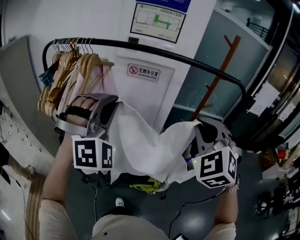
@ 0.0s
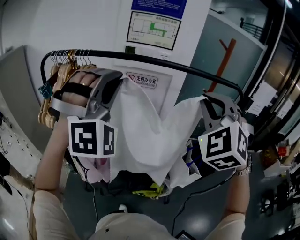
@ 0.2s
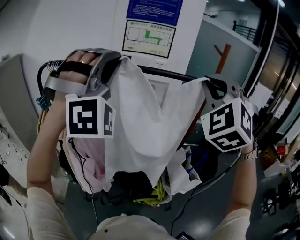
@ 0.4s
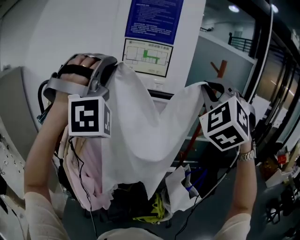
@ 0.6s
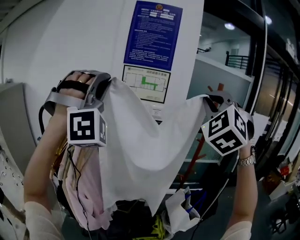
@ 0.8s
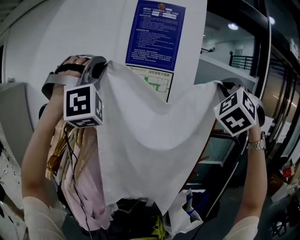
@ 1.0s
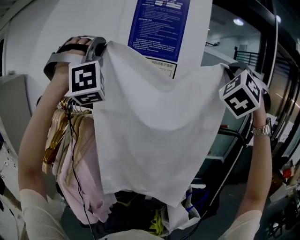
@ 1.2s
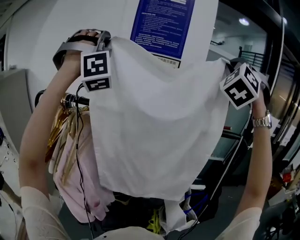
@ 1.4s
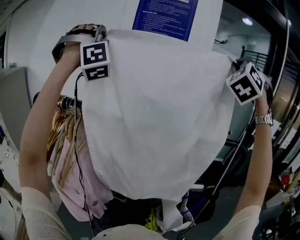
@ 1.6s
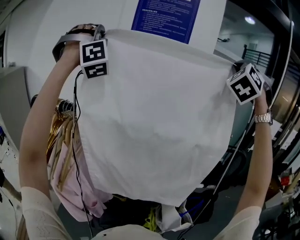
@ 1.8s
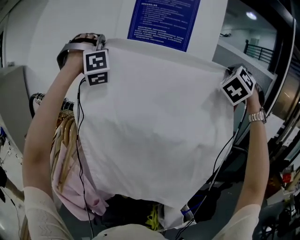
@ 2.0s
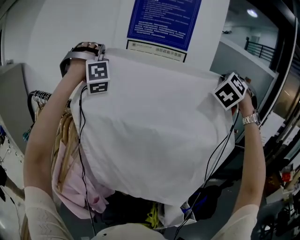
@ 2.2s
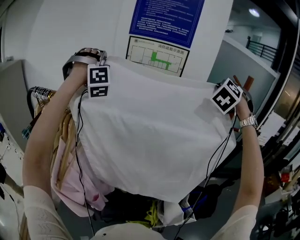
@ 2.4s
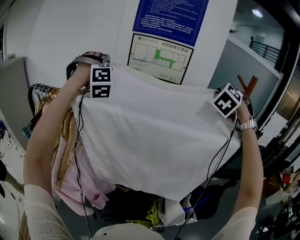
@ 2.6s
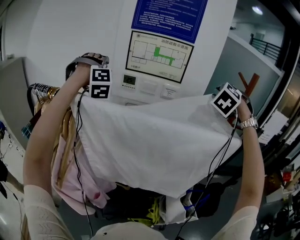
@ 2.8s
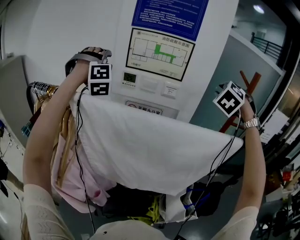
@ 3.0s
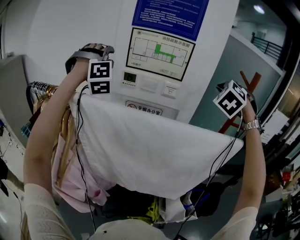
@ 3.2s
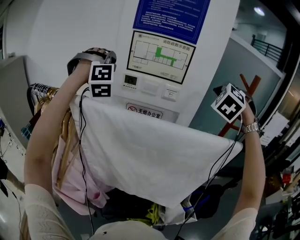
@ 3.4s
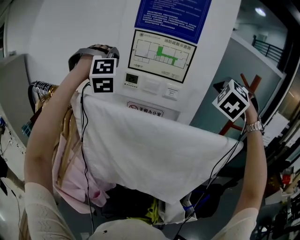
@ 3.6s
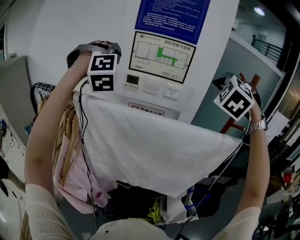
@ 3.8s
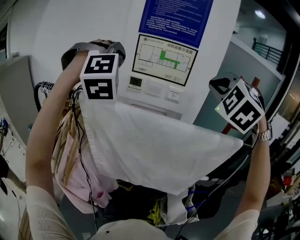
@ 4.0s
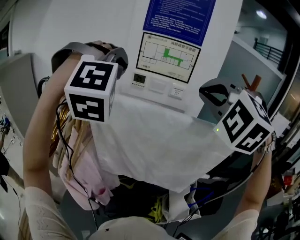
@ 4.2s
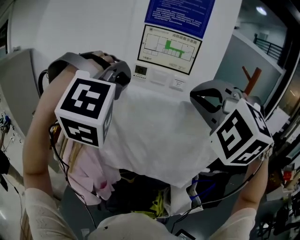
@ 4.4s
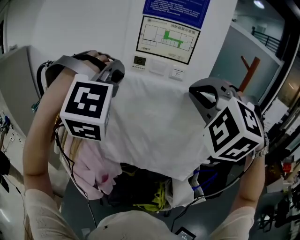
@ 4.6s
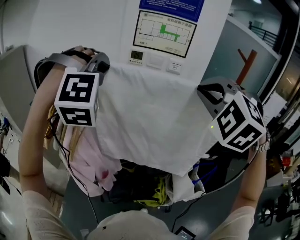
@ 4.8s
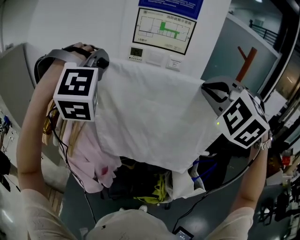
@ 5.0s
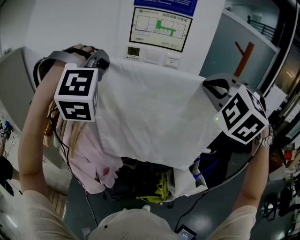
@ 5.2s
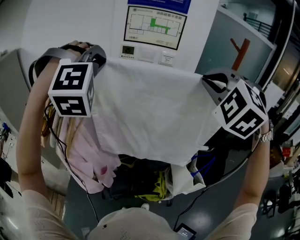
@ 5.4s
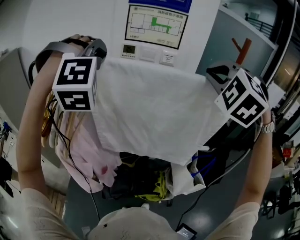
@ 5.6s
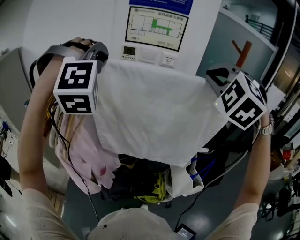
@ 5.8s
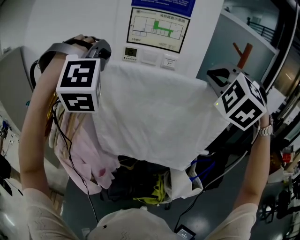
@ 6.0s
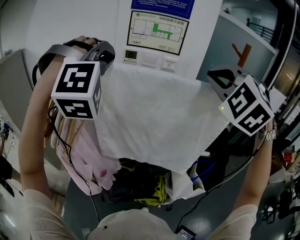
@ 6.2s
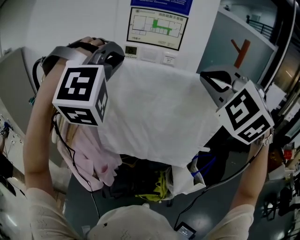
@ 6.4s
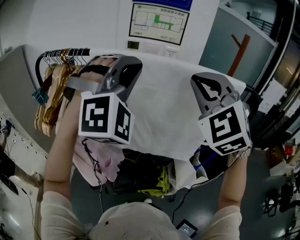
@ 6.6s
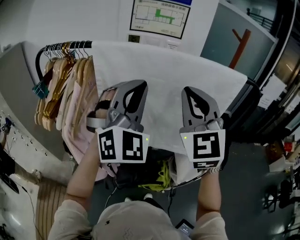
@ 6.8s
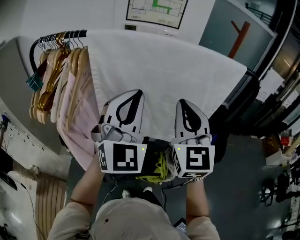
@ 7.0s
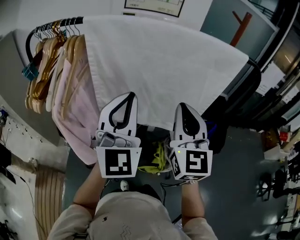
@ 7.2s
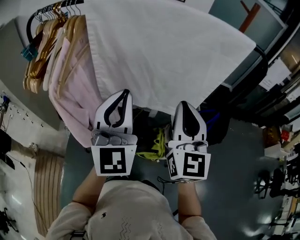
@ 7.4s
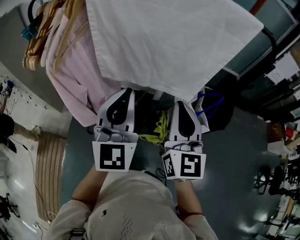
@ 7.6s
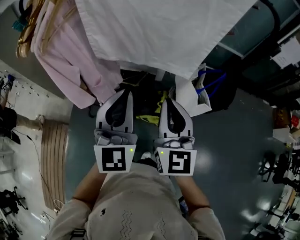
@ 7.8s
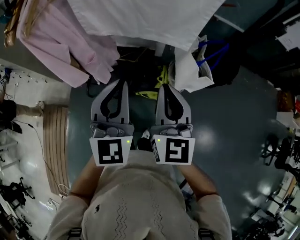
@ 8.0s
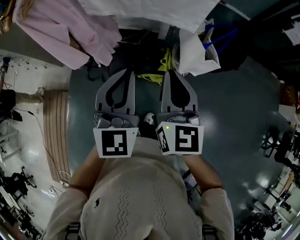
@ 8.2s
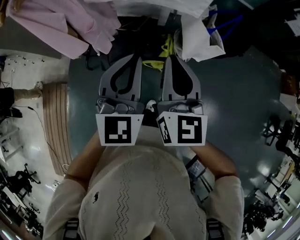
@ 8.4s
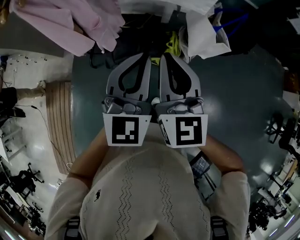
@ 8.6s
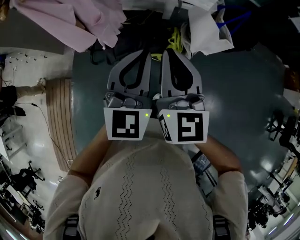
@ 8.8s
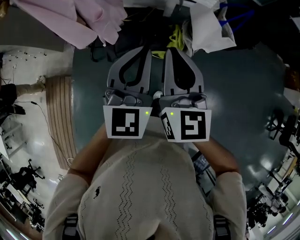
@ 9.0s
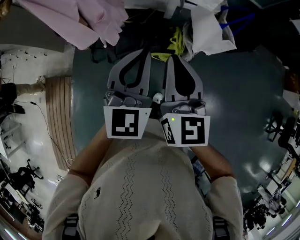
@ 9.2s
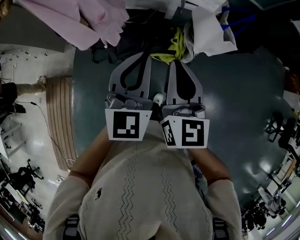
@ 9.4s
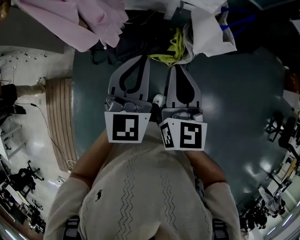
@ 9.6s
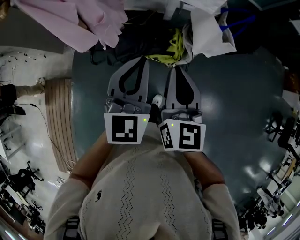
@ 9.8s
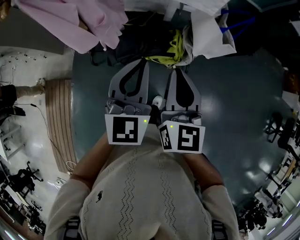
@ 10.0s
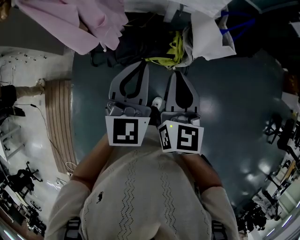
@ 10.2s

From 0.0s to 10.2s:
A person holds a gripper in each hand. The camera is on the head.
From 0.0s to 1.4s: The two grippers go some 40 cm upward and forward. The left gripper rotates approximately 40 degrees; the right gripper rotates about 30 degrees.
From 1.4s to 3.0s: Both grippers move downward and forward, roughly 25 cm. The left gripper angles its fingers downward, by approximately 30 degrees, and opens up. The right gripper angles its fingers downward, by roughly 30 degrees, and opens up.
From 3.0s to 4.4s: The right gripper is displaced backward and to the left by roughly 35 cm, rotates about 40 degrees, and closes up, while the left gripper travels backward by roughly 25 cm, swivels some 20 degrees, and closes up.
From 4.4s to 5.8s: The right gripper moves to the right, approximately 10 cm.
From 5.8s to 7.2s: The right gripper goes roughly 25 cm downward and backward, and rotates around the line of its fingers by about 60 degrees, clockwise from behind. Meanwhile the left gripper shifts about 25 cm backward, downward and to the right, and twists about 70 degrees counterclockwise, seen from behind.
From 7.2s to 8.8s: Both grippers travel together downward and backward, approximately 30 cm. The right gripper rotates approximately 20 degrees; the left gripper turns by approximately 30 degrees.
From 8.8s to 10.2s: The right gripper heads downward, covering some 5 cm.

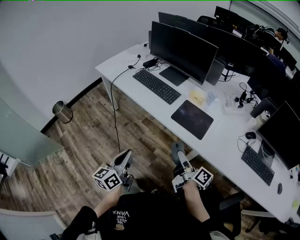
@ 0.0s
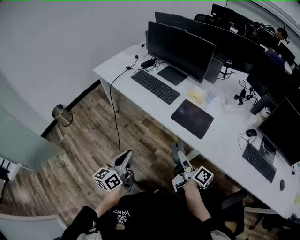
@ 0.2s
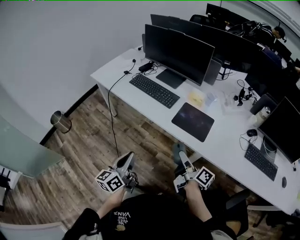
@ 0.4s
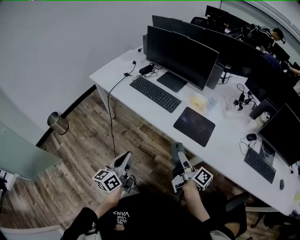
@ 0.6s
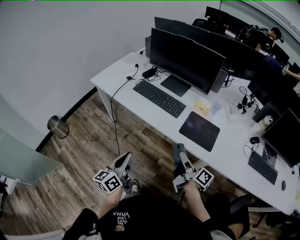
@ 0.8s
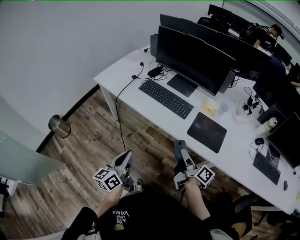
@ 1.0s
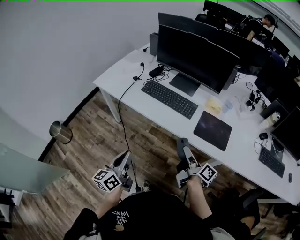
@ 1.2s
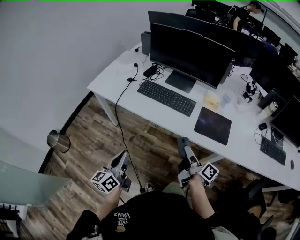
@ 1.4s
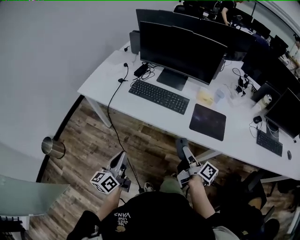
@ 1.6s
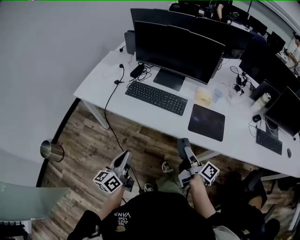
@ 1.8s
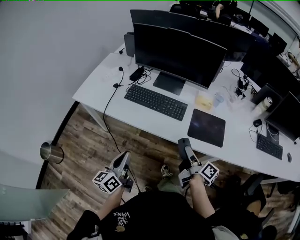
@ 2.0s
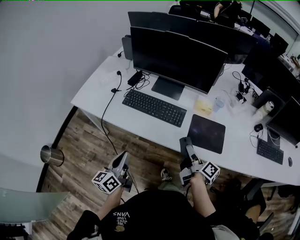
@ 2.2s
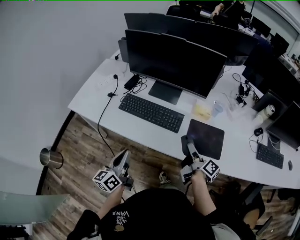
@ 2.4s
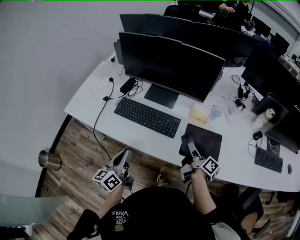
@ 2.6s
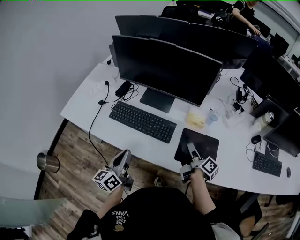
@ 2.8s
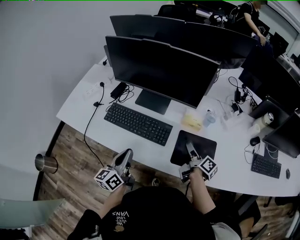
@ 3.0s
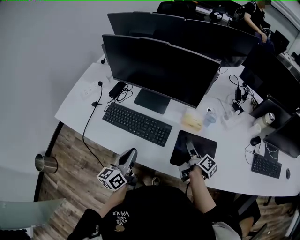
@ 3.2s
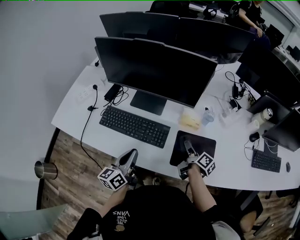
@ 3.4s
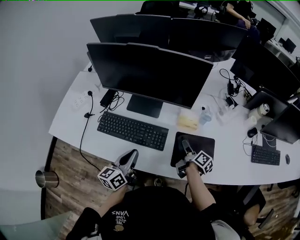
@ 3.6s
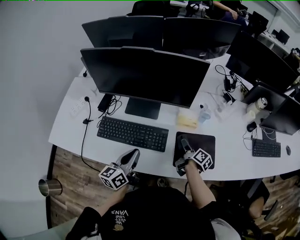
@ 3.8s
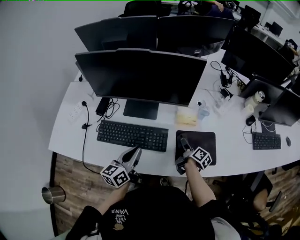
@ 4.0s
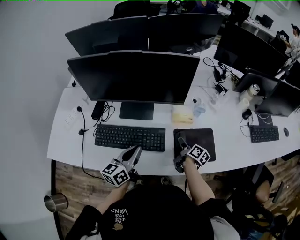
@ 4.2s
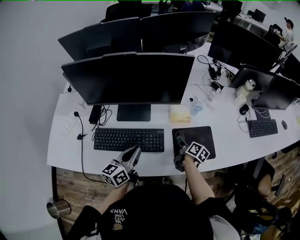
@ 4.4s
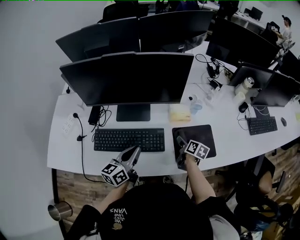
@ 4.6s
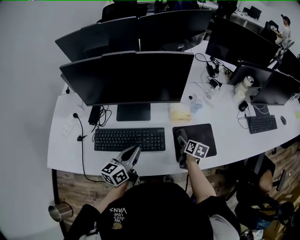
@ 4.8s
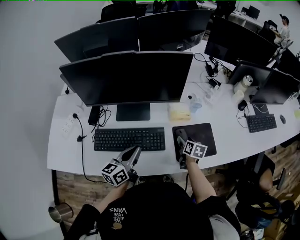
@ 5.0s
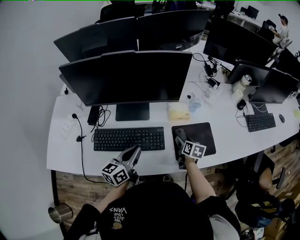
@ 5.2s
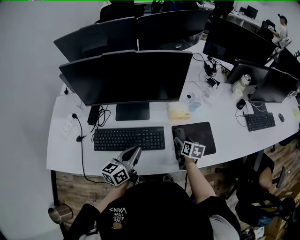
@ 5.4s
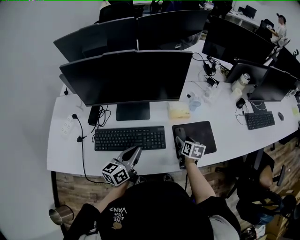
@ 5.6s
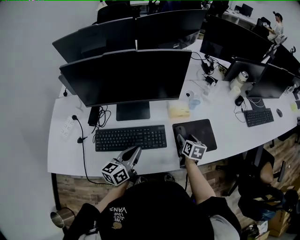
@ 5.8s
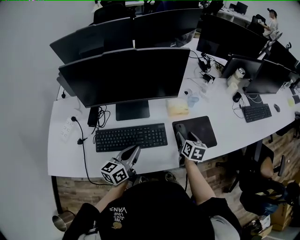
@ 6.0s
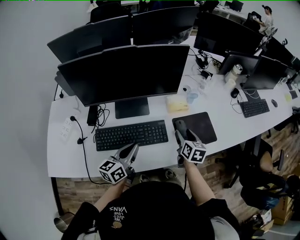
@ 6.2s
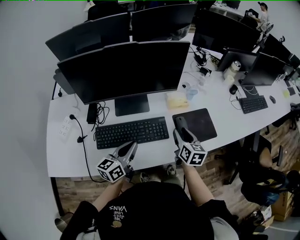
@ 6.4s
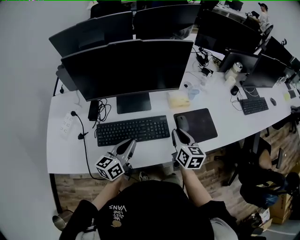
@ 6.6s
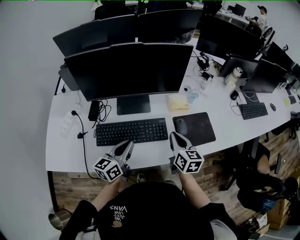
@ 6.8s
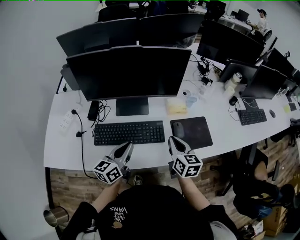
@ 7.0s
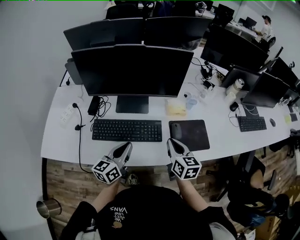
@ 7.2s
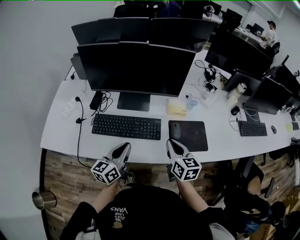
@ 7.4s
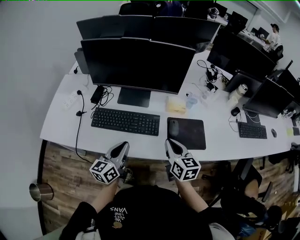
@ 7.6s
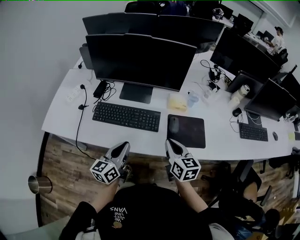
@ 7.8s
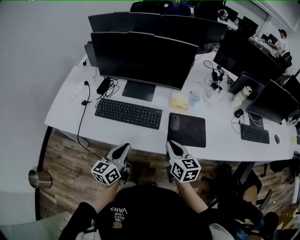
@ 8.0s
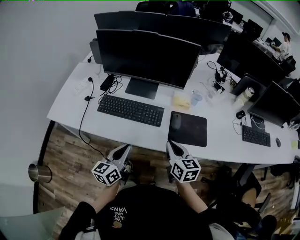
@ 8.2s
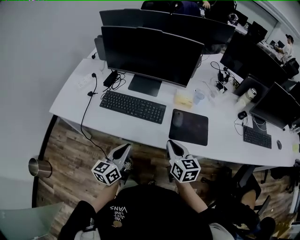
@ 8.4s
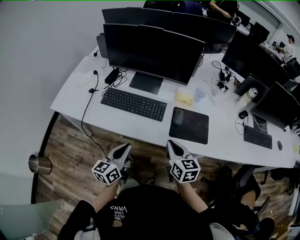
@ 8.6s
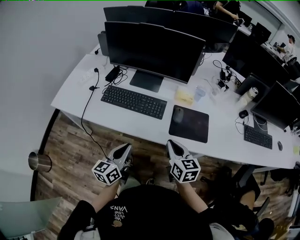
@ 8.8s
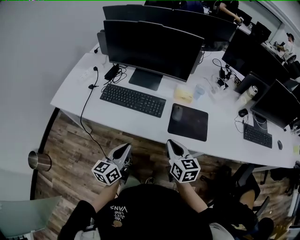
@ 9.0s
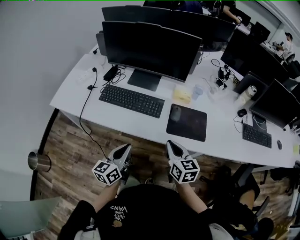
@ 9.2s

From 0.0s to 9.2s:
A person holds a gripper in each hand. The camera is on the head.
From 0.0s to 1.6s: The grippers both shift to the left and forward by approximately 25 cm. The right gripper swivels about 20 degrees.
From 1.6s to 3.0s: The grippers both shift forward and to the right by some 30 cm.
From 3.0s to 4.6s: The left gripper changes place by roughly 10 cm, and rotates about 30 degrees; the right gripper moves downward, approximately 10 cm, and rotates some 30 degrees.
From 4.6s to 6.2s: The right gripper shifts roughly 10 cm upward and backward, and turns by about 30 degrees.
From 6.2s to 7.6s: The right gripper moves backward and upward, some 15 cm, changes its angle by roughly 30 degrees, and closes. Meanwhile the left gripper shifts about 10 cm backward.
From 7.6s to 9.2s: Both grippers travel together backward, approximately 10 cm.

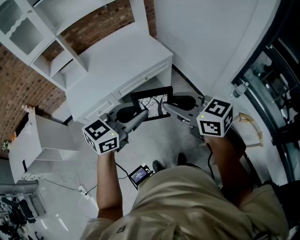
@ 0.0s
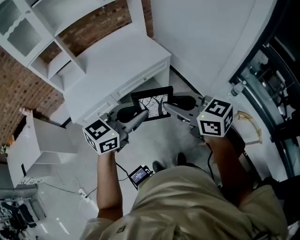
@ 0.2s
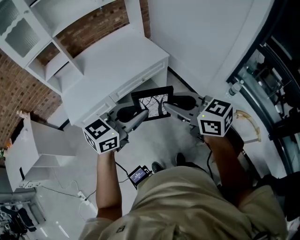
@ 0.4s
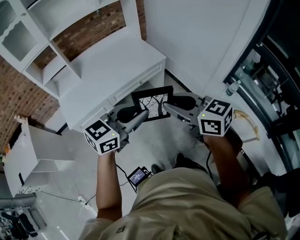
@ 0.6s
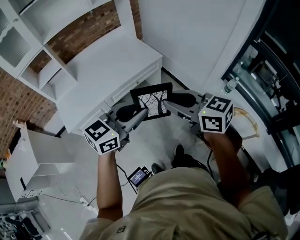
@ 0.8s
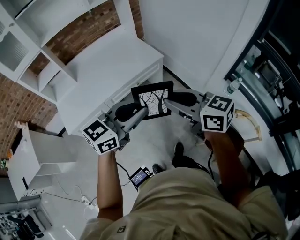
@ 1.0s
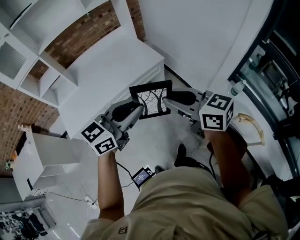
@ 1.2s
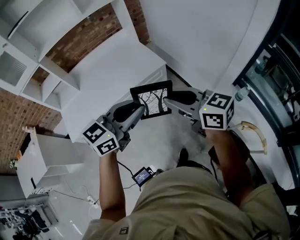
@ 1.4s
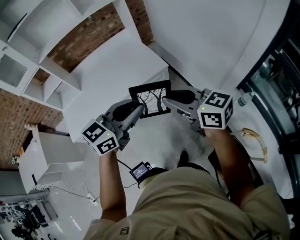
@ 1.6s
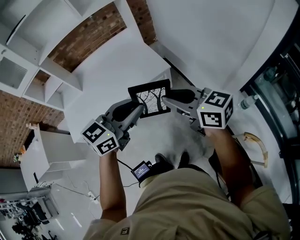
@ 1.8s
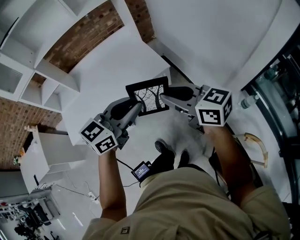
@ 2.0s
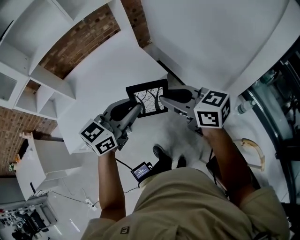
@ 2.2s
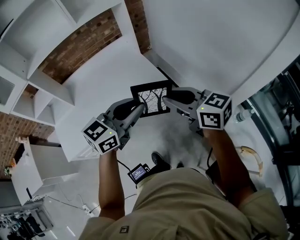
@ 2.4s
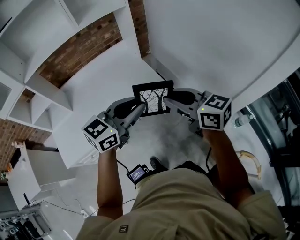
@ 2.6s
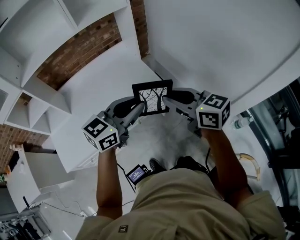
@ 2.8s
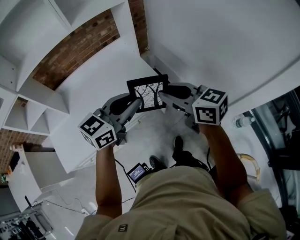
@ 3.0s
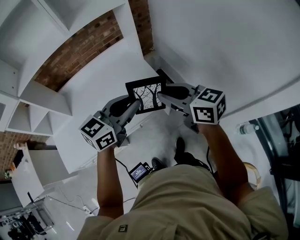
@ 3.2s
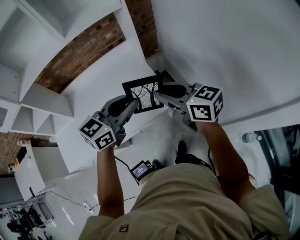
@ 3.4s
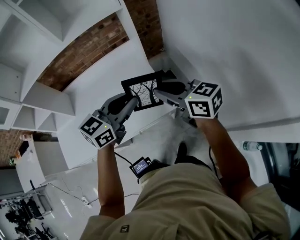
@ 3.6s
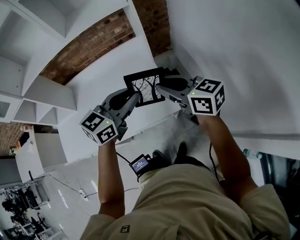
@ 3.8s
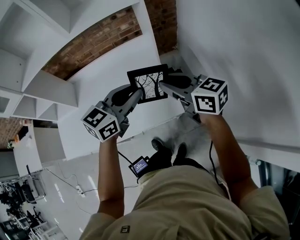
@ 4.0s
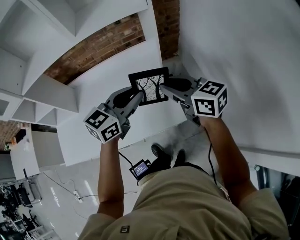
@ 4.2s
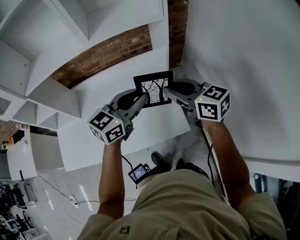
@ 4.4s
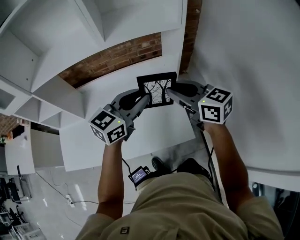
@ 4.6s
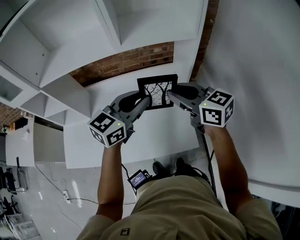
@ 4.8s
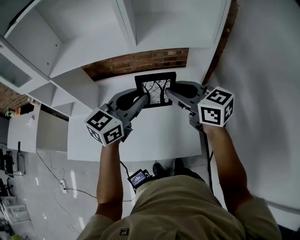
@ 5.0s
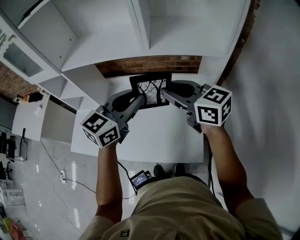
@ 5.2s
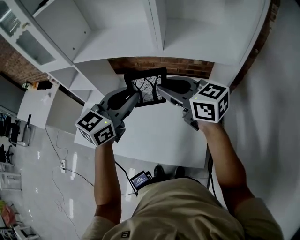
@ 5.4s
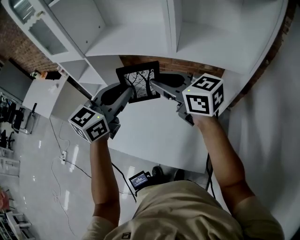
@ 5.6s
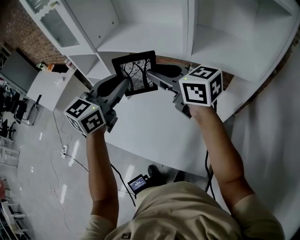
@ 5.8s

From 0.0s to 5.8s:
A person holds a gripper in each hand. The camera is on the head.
From 0.0s to 1.4s: Both grippers travel together forward and to the right, about 15 cm.
From 1.4s to 2.8s: The grippers both shift forward by roughly 30 cm.
From 2.8s to 4.4s: The two grippers go some 25 cm forward. The left gripper rotates roughly 20 degrees.
From 4.4s to 5.8s: The left gripper ends up approximately 35 cm from where it was, and turns by some 40 degrees. Meanwhile the right gripper changes place by some 40 cm, and swivels approximately 40 degrees.
